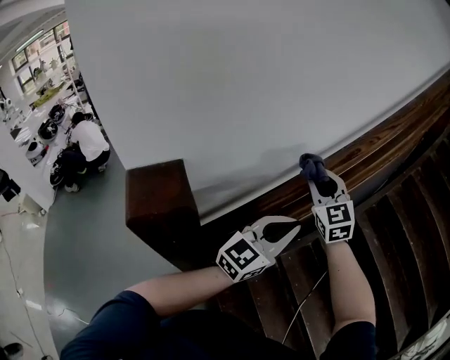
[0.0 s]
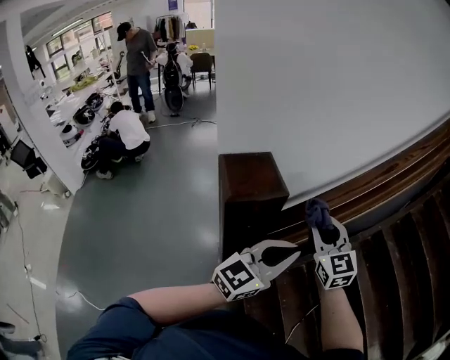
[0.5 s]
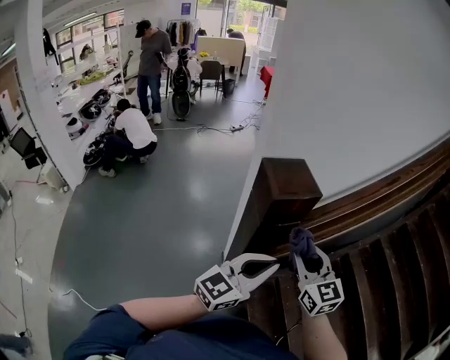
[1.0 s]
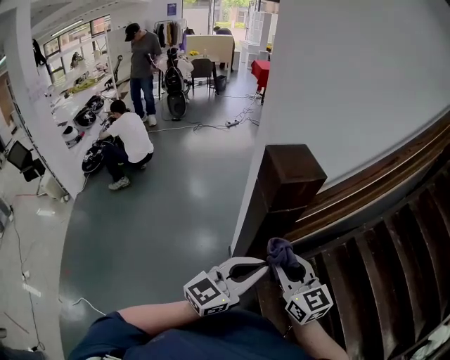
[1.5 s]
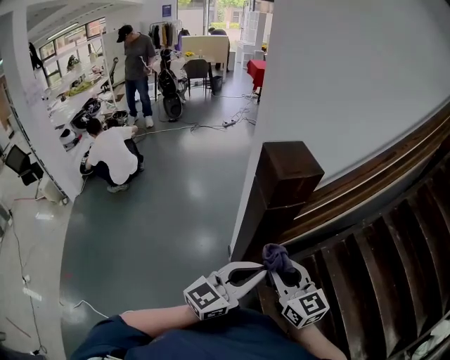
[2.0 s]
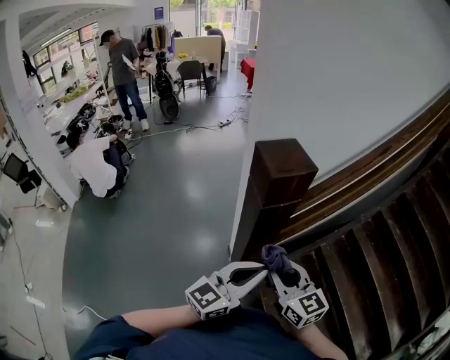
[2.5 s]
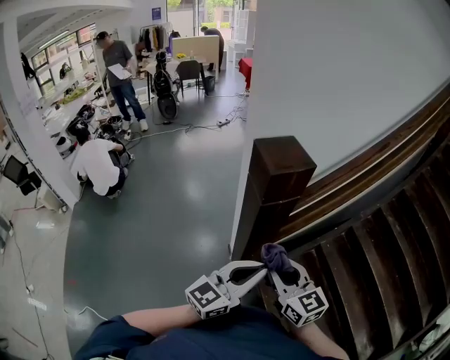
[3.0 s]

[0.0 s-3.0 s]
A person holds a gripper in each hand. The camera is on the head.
0.0 to 1.5 s: The two grippers travel together, backward and to the left, approximately 50 cm. The right gripper rotates some 30 degrees.
1.5 to 3.0 s: The grippers stay close to where they were, moving slightly.

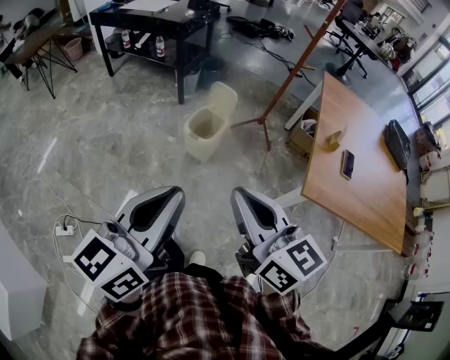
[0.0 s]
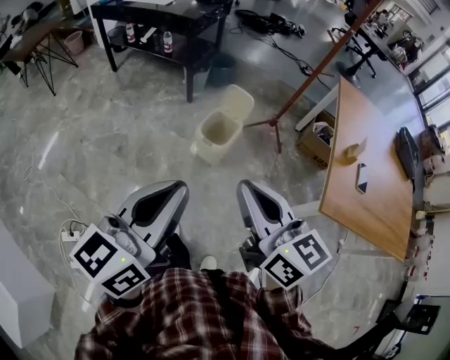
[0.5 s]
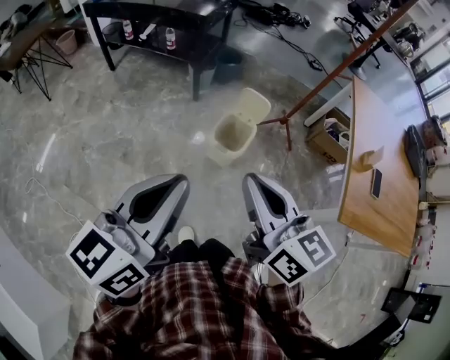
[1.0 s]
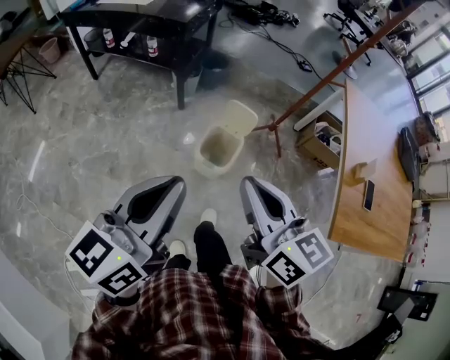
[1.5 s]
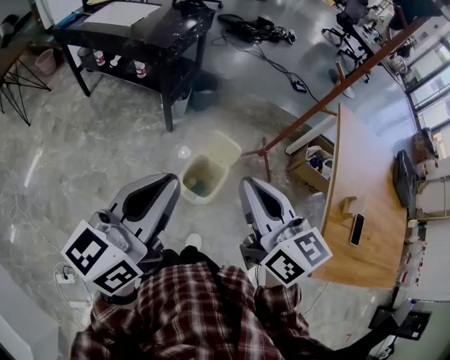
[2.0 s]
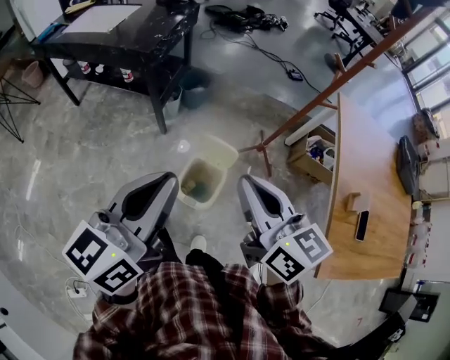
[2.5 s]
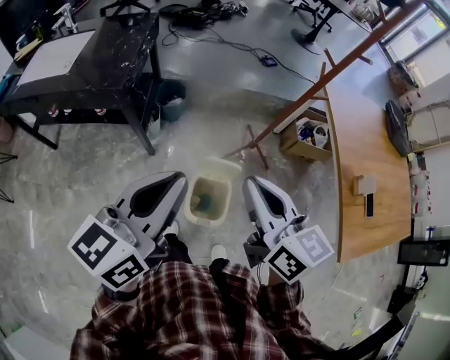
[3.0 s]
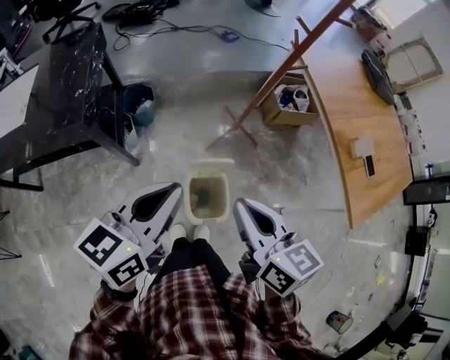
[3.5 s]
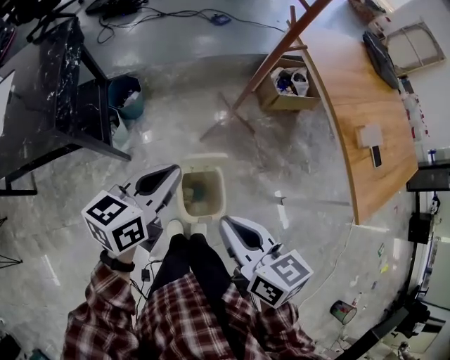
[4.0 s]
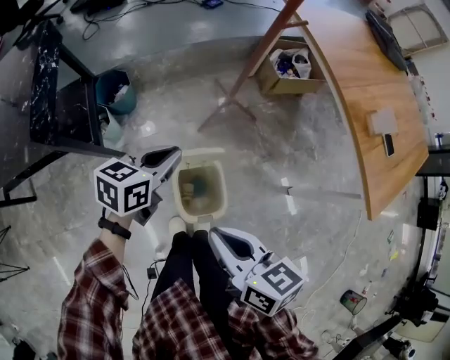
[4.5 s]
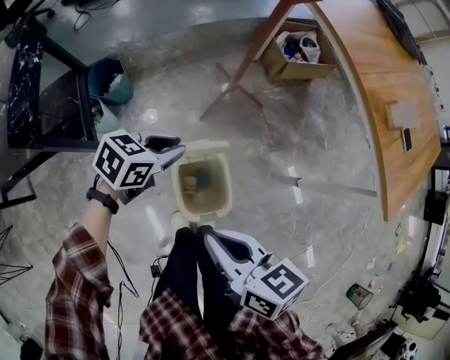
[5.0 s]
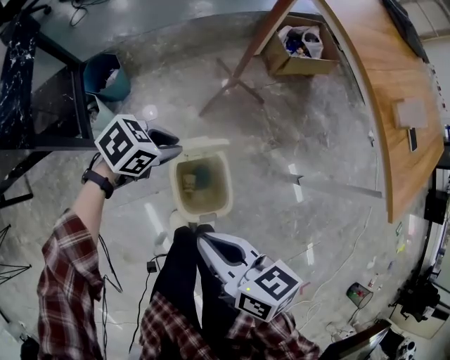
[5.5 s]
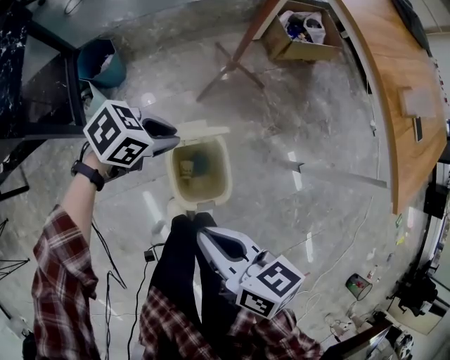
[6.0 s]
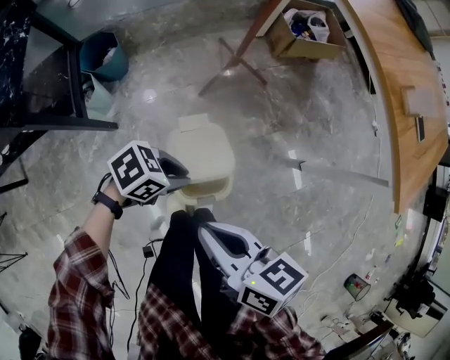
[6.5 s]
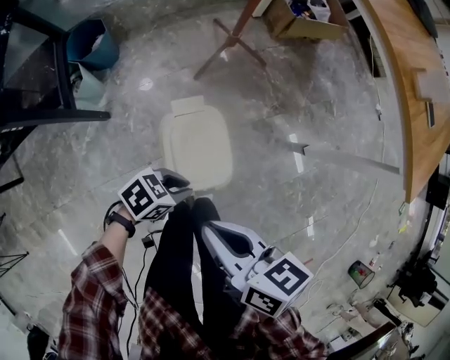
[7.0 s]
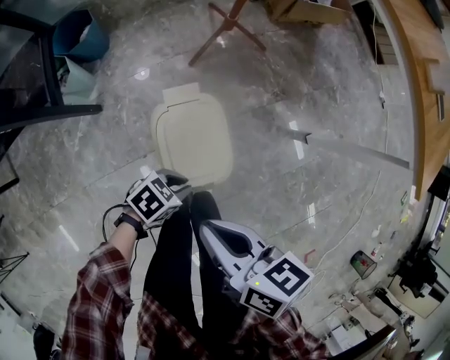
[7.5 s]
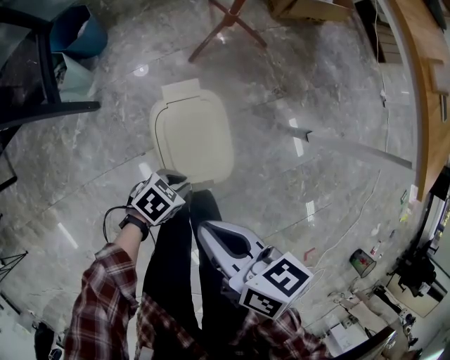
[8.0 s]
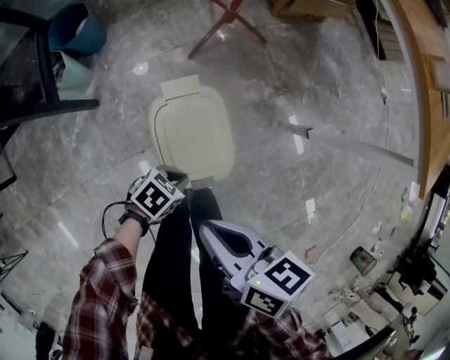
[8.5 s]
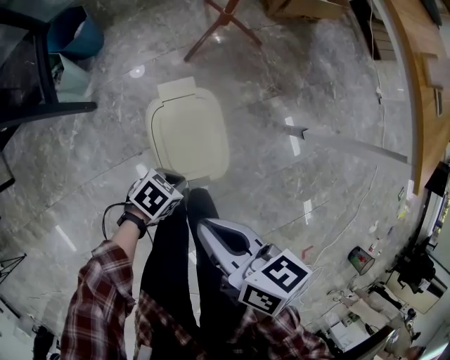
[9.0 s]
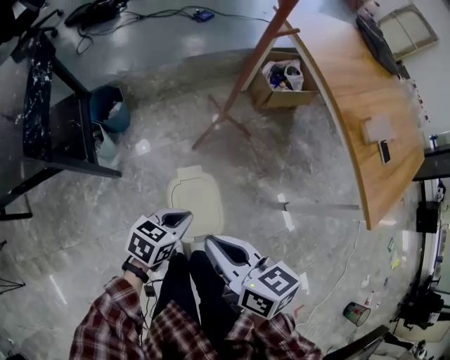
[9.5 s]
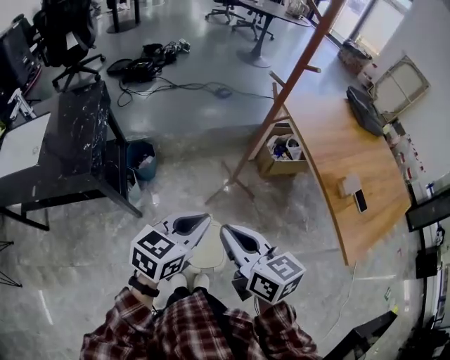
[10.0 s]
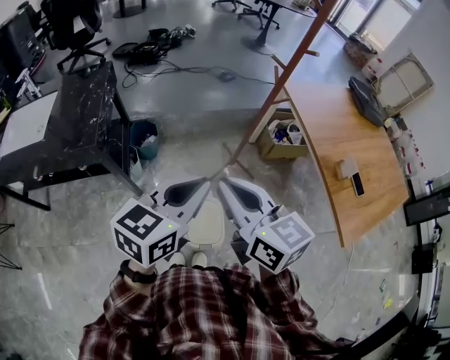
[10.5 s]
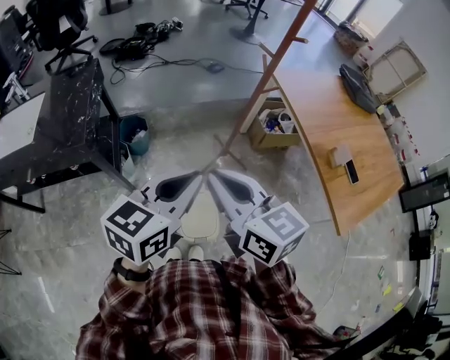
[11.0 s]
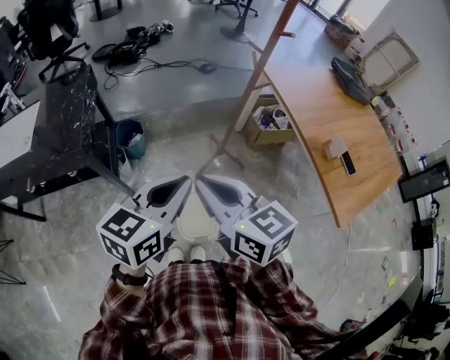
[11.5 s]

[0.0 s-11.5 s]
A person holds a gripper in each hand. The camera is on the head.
0.0 to 2.0 s: The two grippers travel together, forward, approximately 40 cm.
2.0 to 4.0 s: The left gripper changes place by some 40 cm, and turns by roughly 50 degrees. Meanwhile the right gripper ends up about 25 cm from where it was, and swivels about 40 degrees.
4.0 to 6.0 s: The right gripper shifts some 20 cm downward. The left gripper goes some 30 cm downward, and swivels approximately 50 degrees.
6.0 to 7.5 s: The right gripper shifts roughly 10 cm downward. The left gripper ends up roughly 30 cm from where it was.
7.5 to 9.5 s: The right gripper is displaced upward by approximately 15 cm, while the left gripper is displaced upward by about 25 cm, and turns by about 30 degrees.
9.5 to 11.5 s: The left gripper shifts approximately 40 cm upward, and changes its angle by some 40 degrees, while the right gripper moves upward, roughly 25 cm, and turns by roughly 30 degrees.

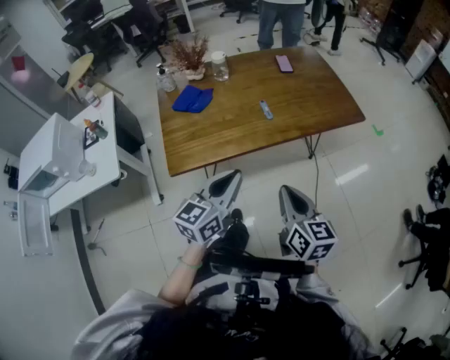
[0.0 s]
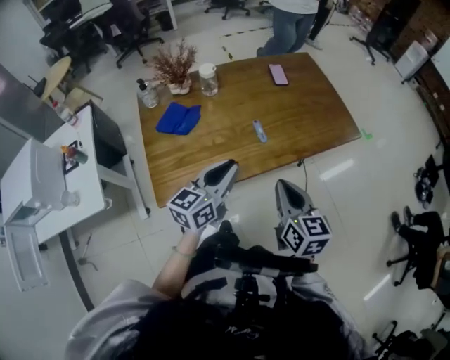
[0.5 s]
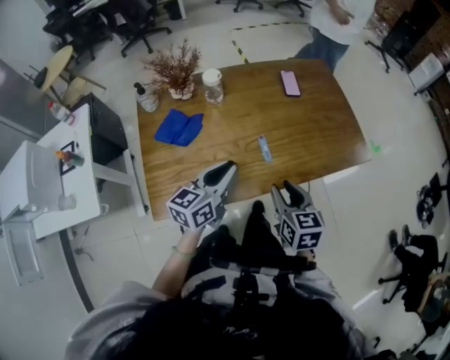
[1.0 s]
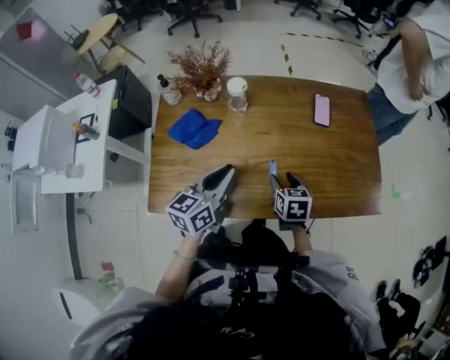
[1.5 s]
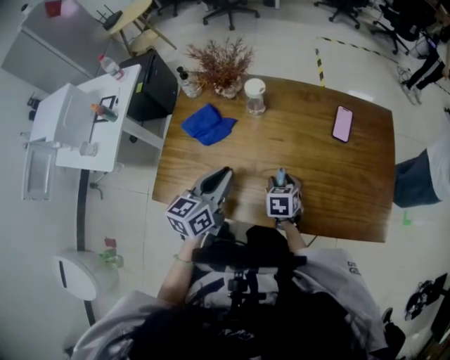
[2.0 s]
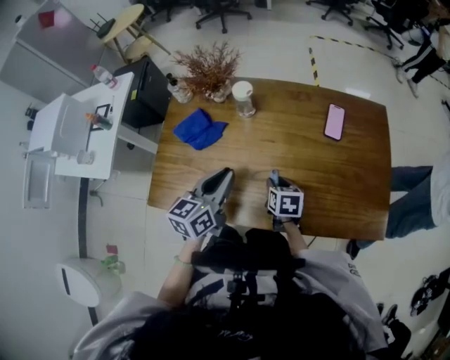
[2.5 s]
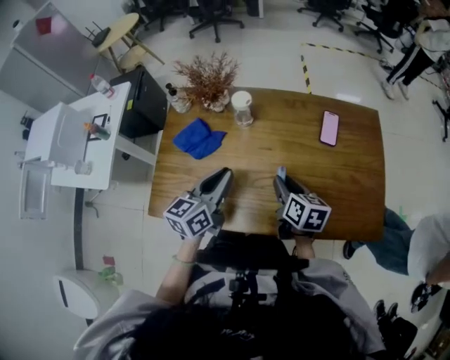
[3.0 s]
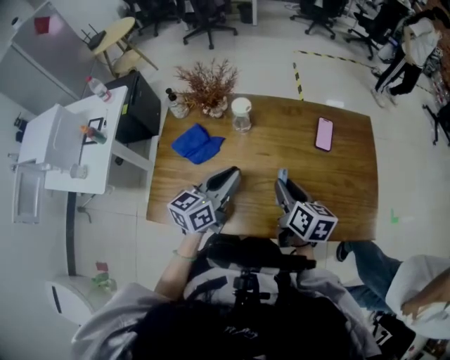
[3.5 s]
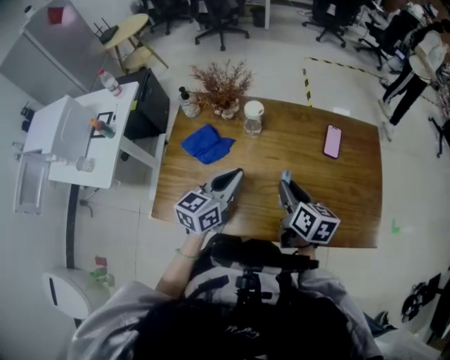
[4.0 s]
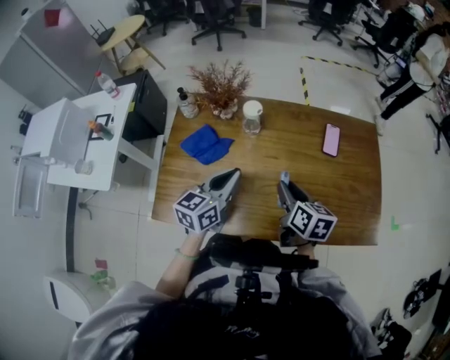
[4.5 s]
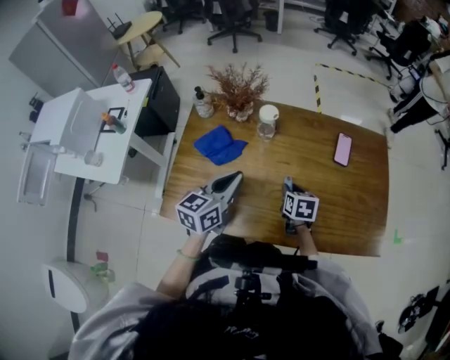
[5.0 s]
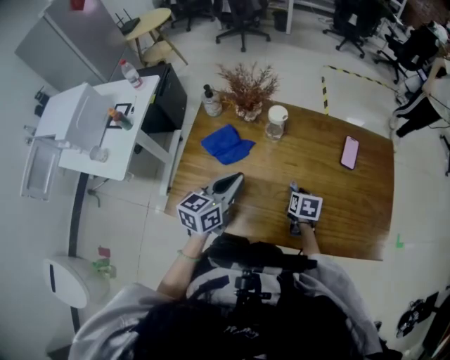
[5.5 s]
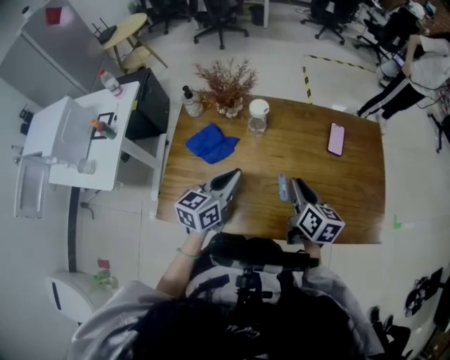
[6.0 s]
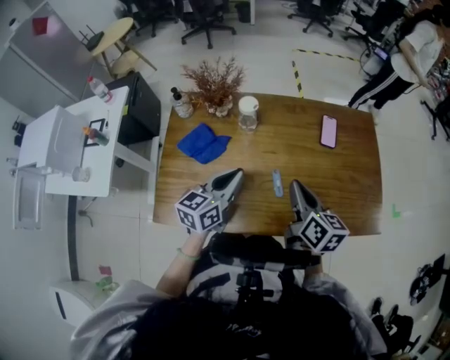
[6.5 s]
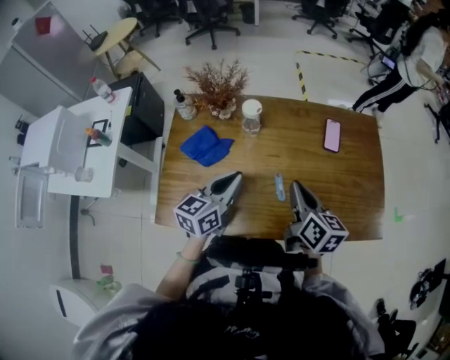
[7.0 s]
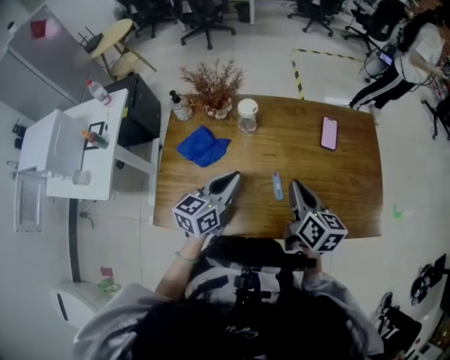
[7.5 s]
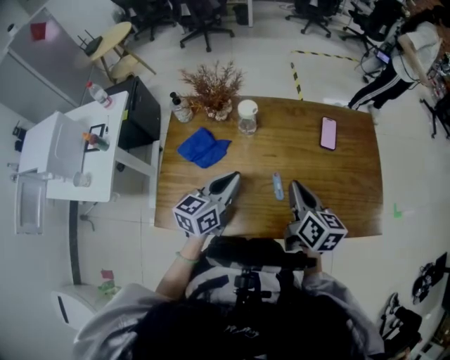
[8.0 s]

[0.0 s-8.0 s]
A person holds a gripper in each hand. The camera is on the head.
0.0 to 2.0 s: The left gripper moves forward, approximately 30 cm, and turns by approximately 30 degrees; the right gripper is displaced forward and downward by some 50 cm, angles its fingers downward, by some 40 degrees, and opens up.
2.0 to 4.0 s: The left gripper changes place by approximately 5 cm. Meanwhile the right gripper goes approximately 20 cm upward, rotates about 40 degrees, and closes.
4.0 to 6.0 s: The right gripper reaches about 20 cm downward, then returns.
6.0 to 8.0 s: The right gripper closes up.

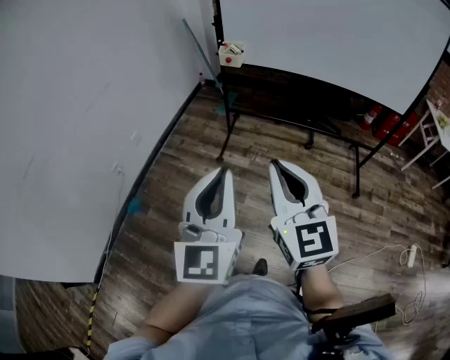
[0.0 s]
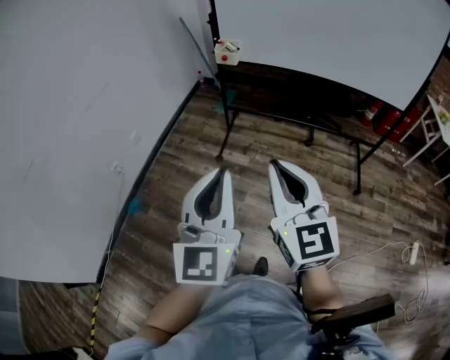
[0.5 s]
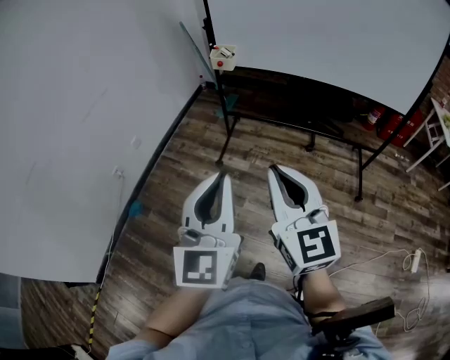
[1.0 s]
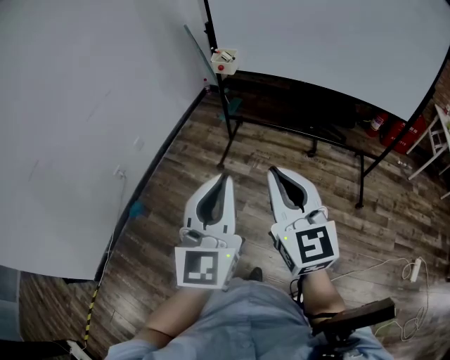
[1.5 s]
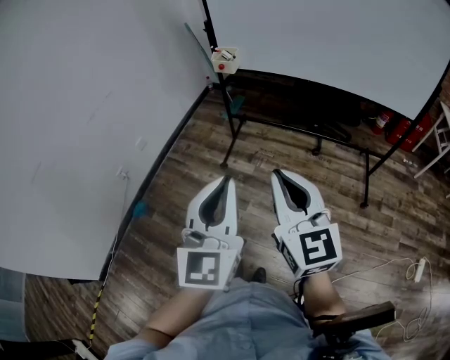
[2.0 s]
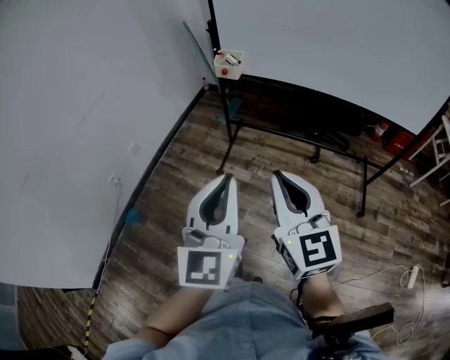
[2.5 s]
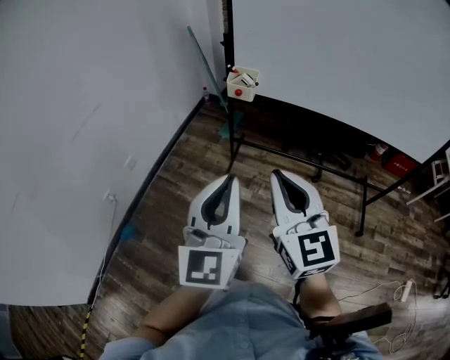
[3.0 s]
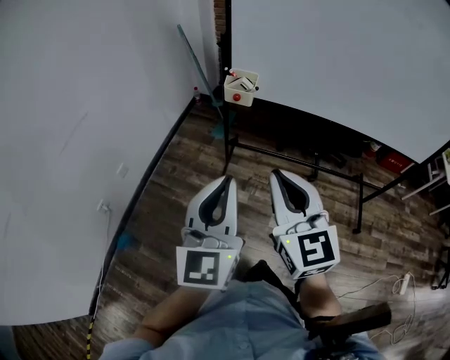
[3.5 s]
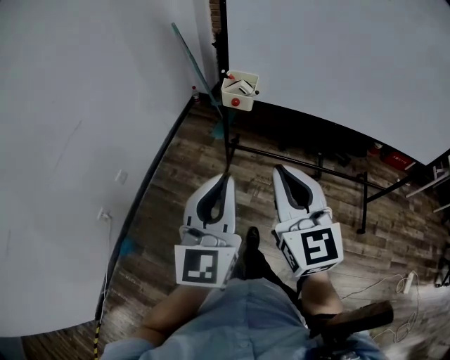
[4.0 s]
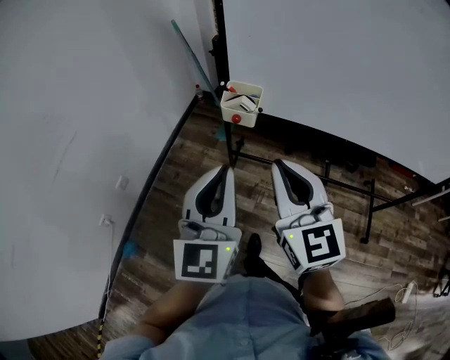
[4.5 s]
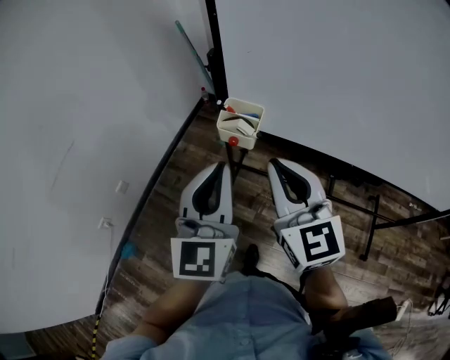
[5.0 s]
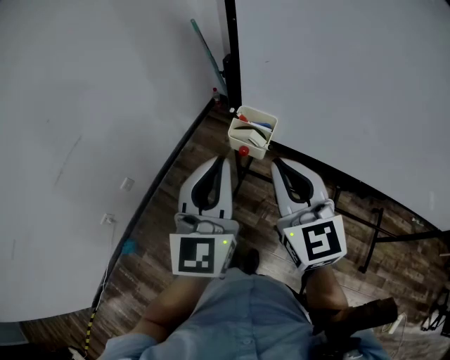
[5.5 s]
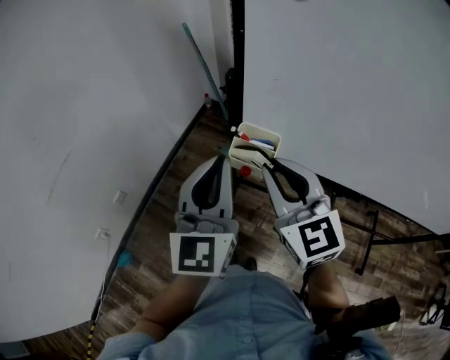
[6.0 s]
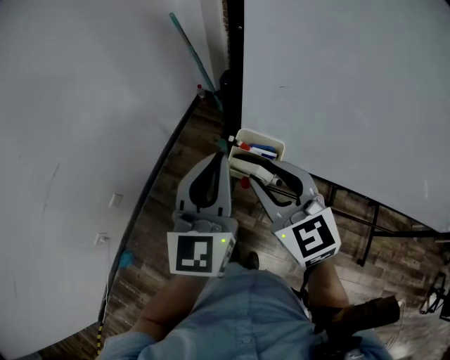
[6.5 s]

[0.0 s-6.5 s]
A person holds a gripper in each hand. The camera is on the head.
0.0 to 2.0 s: Both grippers travel together to the right, about 10 cm.
2.0 to 4.5 s: The two grippers travel together, forward, approximately 40 cm.
4.5 to 6.5 s: The grippers both shift forward by about 25 cm. The right gripper swivels some 20 degrees, and opens.
